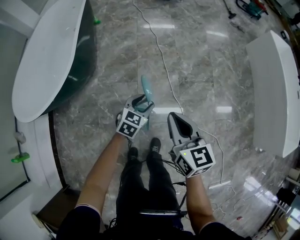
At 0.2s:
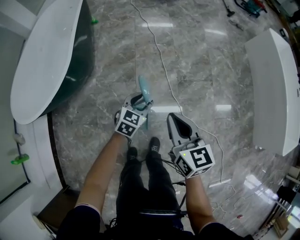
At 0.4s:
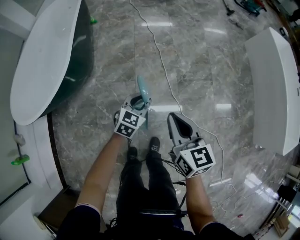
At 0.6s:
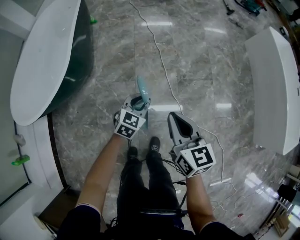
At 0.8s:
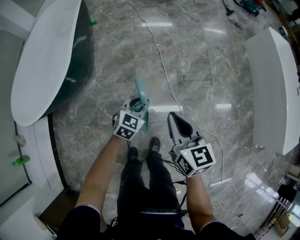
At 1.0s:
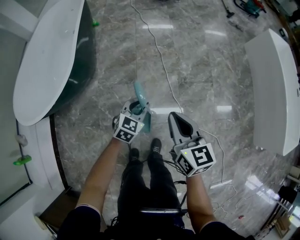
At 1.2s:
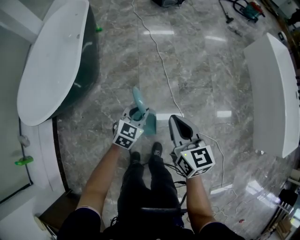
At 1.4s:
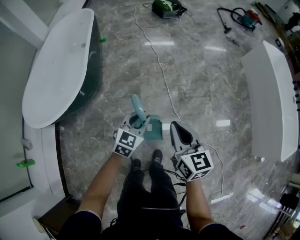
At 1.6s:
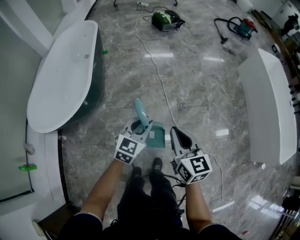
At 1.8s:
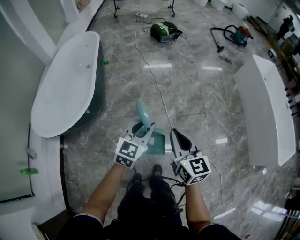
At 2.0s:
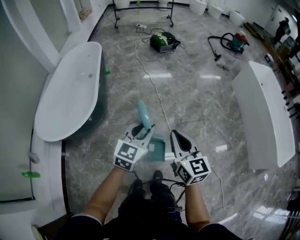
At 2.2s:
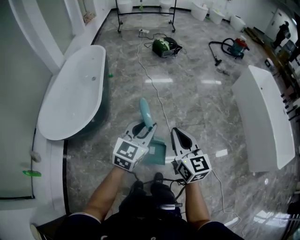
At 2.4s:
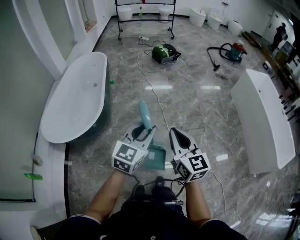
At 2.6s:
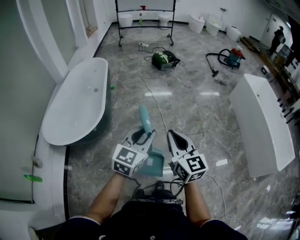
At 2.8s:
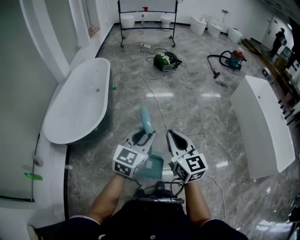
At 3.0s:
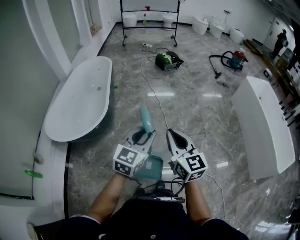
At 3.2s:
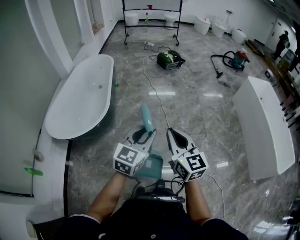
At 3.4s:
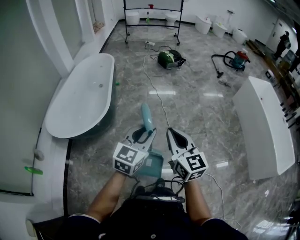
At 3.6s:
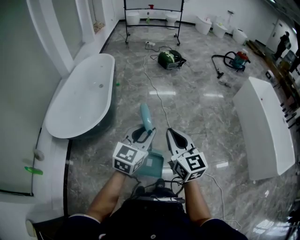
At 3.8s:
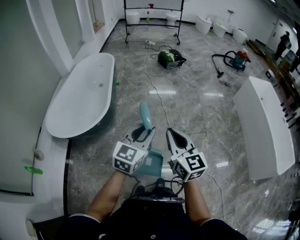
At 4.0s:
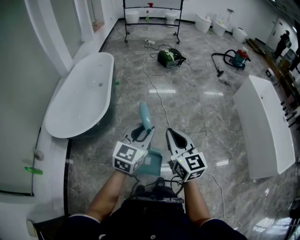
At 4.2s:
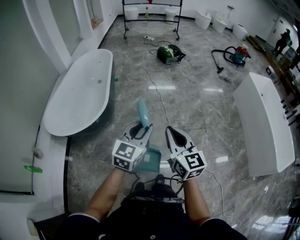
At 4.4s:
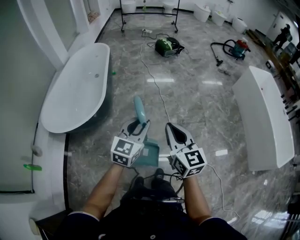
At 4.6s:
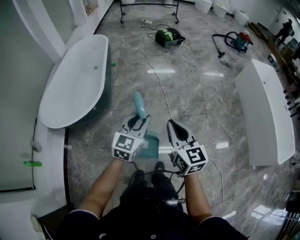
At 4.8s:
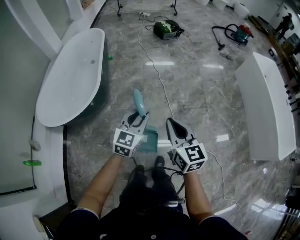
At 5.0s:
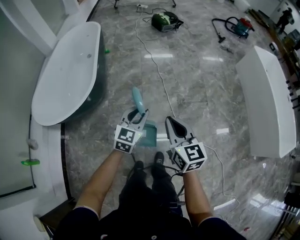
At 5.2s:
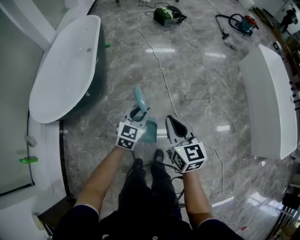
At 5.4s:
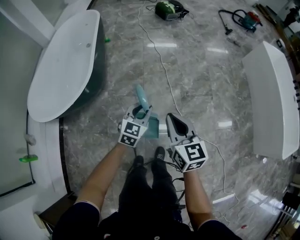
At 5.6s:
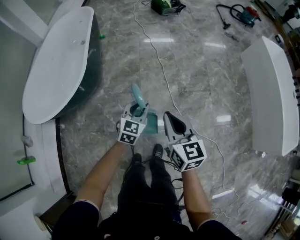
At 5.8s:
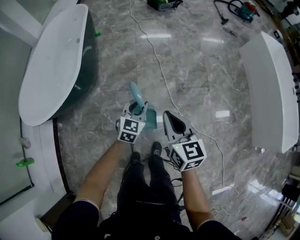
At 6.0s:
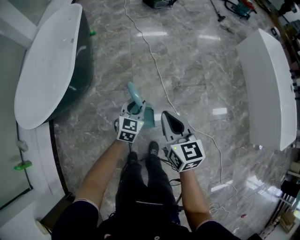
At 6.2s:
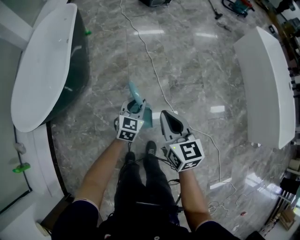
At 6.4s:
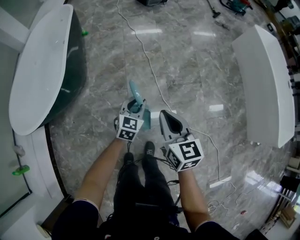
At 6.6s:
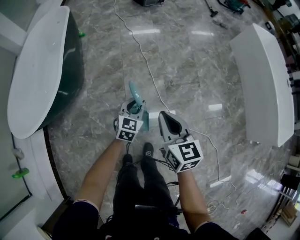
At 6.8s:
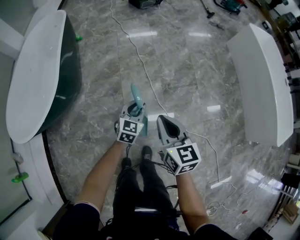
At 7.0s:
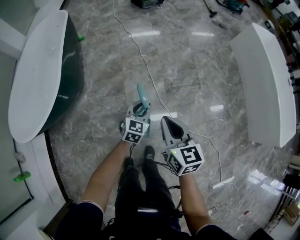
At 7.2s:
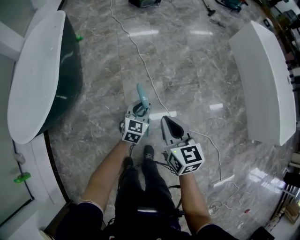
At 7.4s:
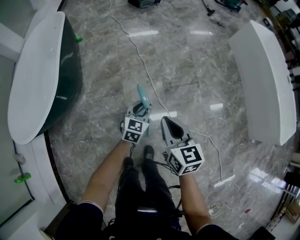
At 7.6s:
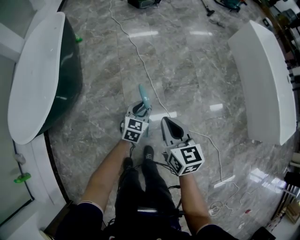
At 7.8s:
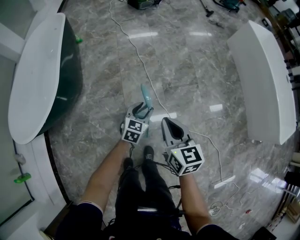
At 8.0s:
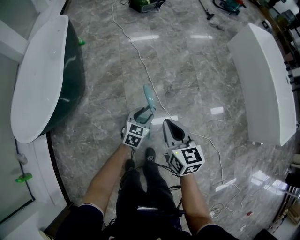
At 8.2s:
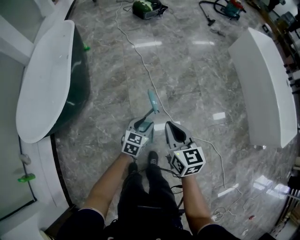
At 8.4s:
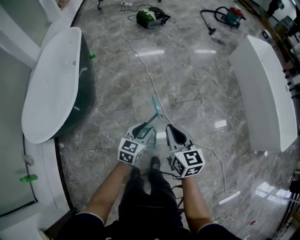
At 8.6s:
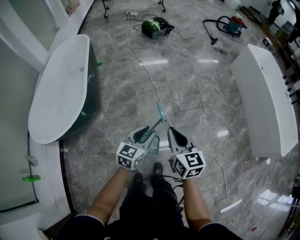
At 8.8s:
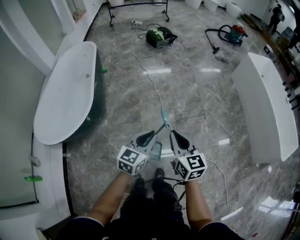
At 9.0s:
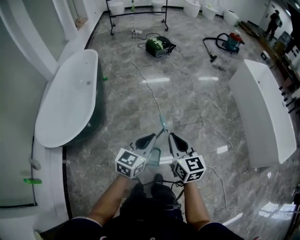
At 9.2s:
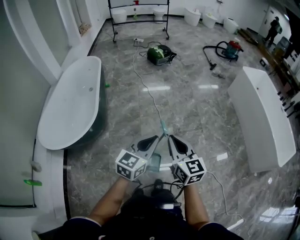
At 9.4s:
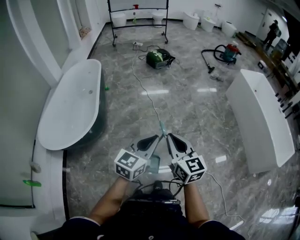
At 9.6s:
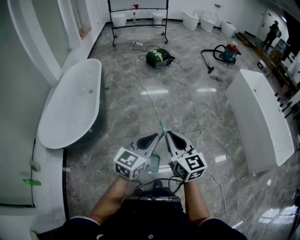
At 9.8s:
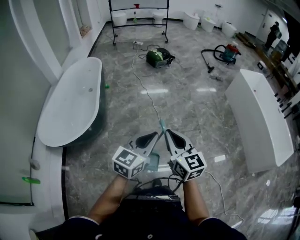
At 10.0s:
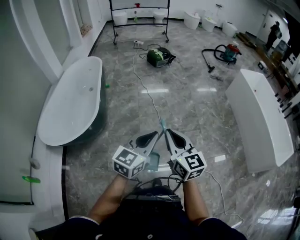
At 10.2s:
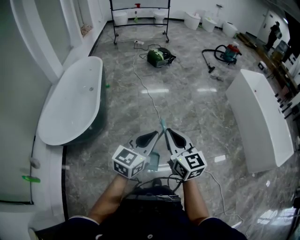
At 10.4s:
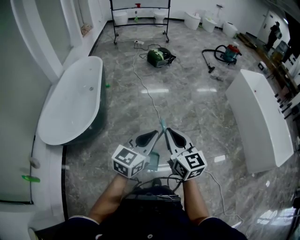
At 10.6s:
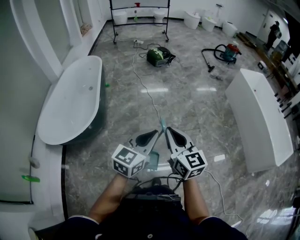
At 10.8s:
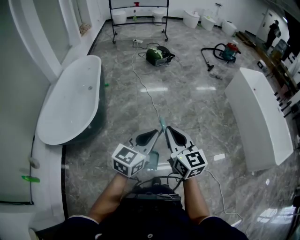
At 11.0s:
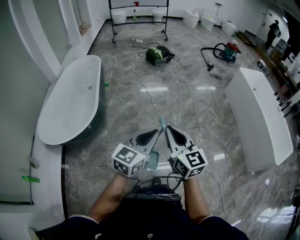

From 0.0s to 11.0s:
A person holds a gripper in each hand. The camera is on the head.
From 0.0s to 1.6s: The right gripper is displaced upward by about 10 cm; the left gripper is displaced upward by roughly 20 cm, and closes up.
From 1.6s to 3.2s: Both grippers travel together upward and backward, about 20 cm.
From 3.2s to 4.8s: The right gripper moves downward, about 10 cm; the left gripper is displaced downward and forward by roughly 15 cm.
From 4.8s to 6.2s: The right gripper heads downward and forward, covering approximately 15 cm, while the left gripper moves downward and forward, about 25 cm.
From 6.2s to 7.8s: The left gripper is displaced to the right and downward by some 10 cm; the right gripper heads to the right, covering some 5 cm.
From 7.8s to 9.4s: The left gripper is displaced upward and backward by about 40 cm, turns by about 30 degrees, and closes its fingers, while the right gripper moves upward and backward, approximately 25 cm.
From 9.4s to 11.0s: The grippers move only a little.

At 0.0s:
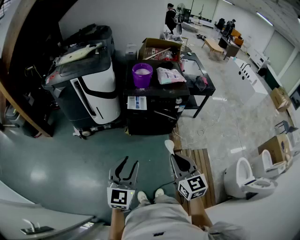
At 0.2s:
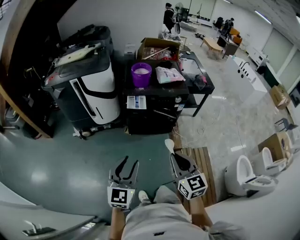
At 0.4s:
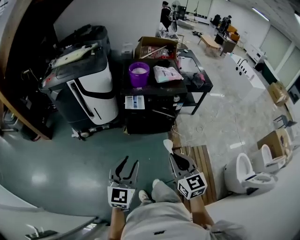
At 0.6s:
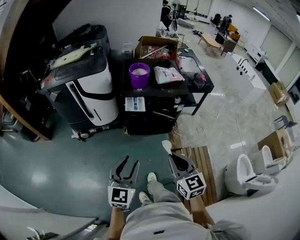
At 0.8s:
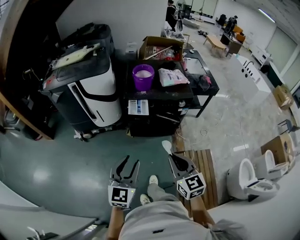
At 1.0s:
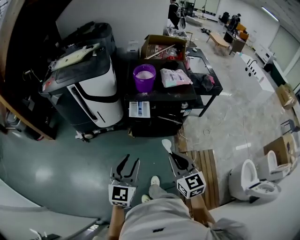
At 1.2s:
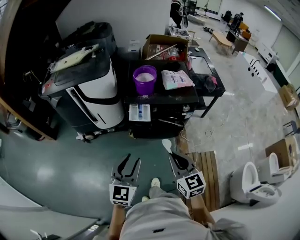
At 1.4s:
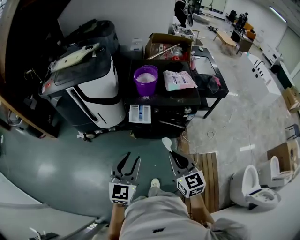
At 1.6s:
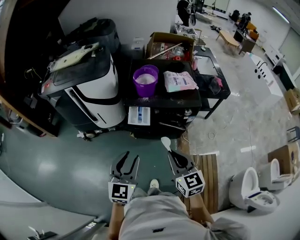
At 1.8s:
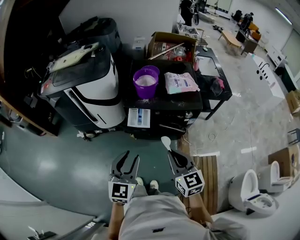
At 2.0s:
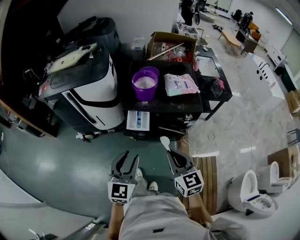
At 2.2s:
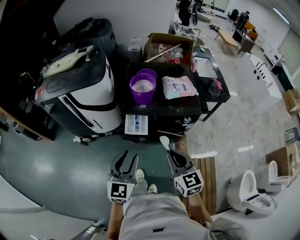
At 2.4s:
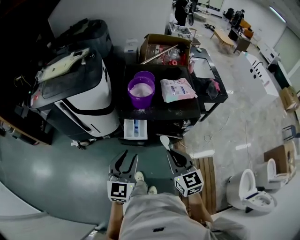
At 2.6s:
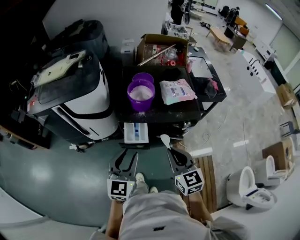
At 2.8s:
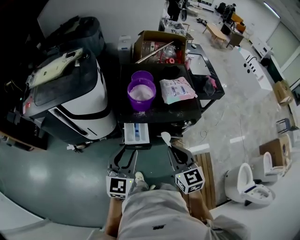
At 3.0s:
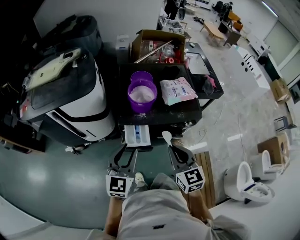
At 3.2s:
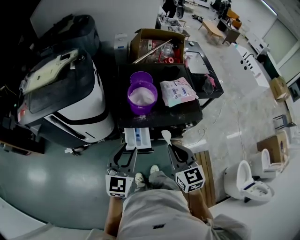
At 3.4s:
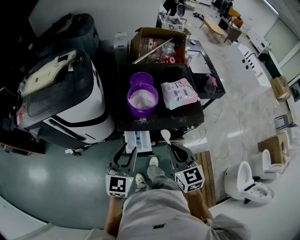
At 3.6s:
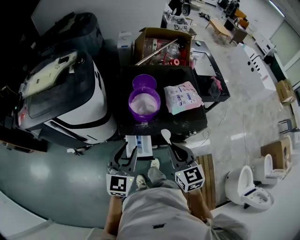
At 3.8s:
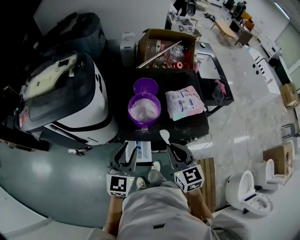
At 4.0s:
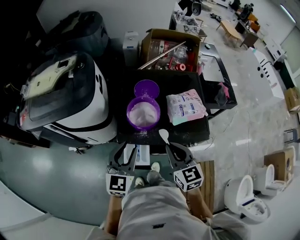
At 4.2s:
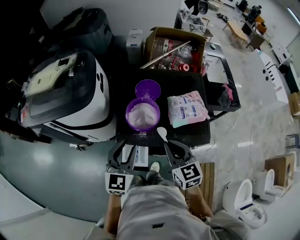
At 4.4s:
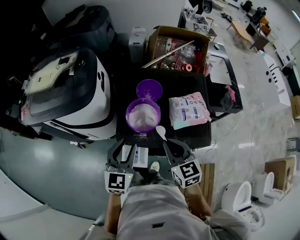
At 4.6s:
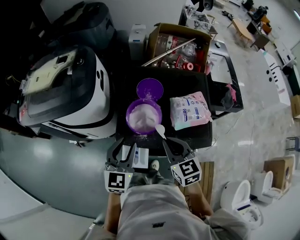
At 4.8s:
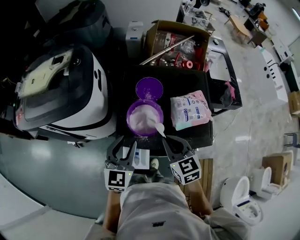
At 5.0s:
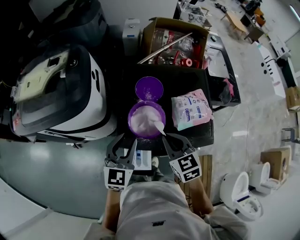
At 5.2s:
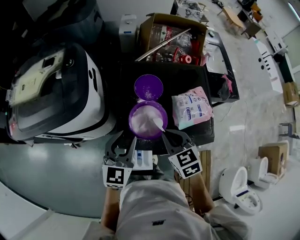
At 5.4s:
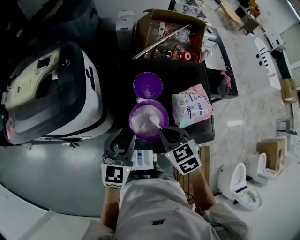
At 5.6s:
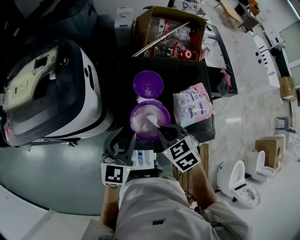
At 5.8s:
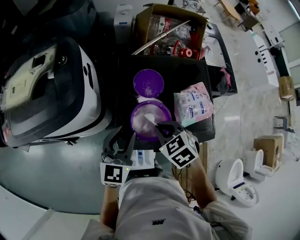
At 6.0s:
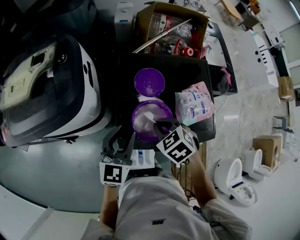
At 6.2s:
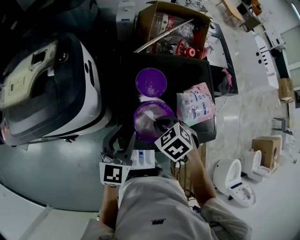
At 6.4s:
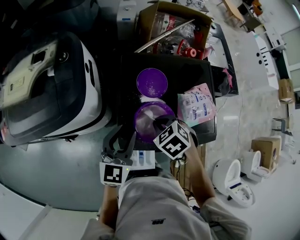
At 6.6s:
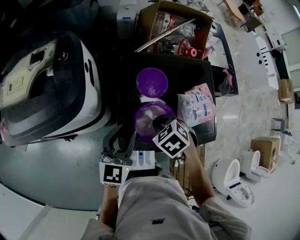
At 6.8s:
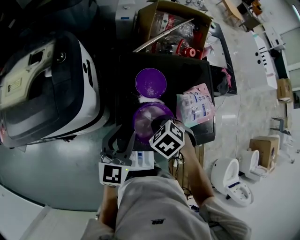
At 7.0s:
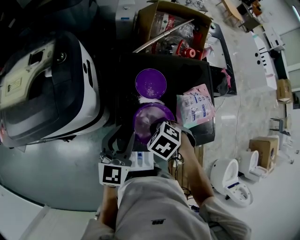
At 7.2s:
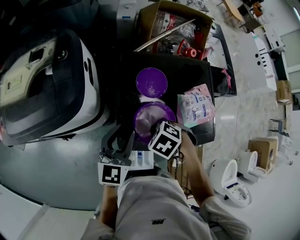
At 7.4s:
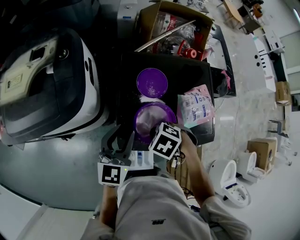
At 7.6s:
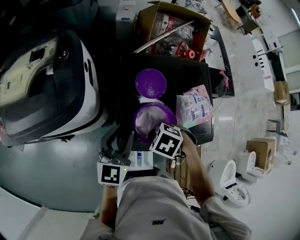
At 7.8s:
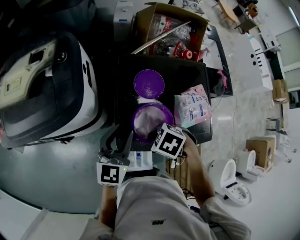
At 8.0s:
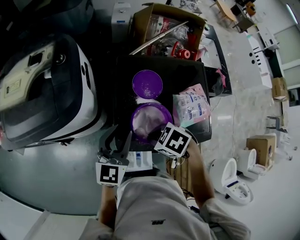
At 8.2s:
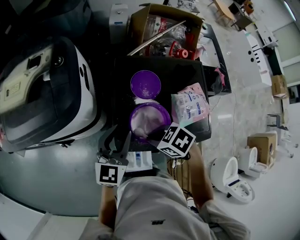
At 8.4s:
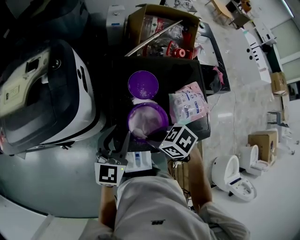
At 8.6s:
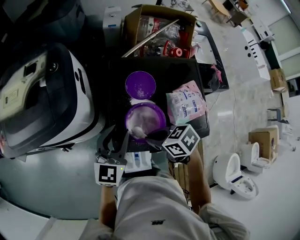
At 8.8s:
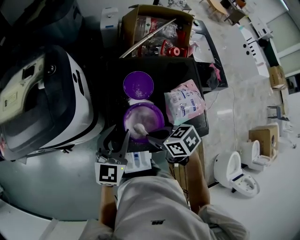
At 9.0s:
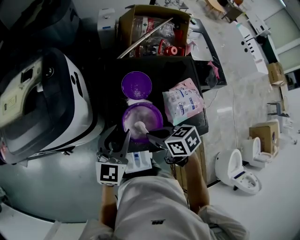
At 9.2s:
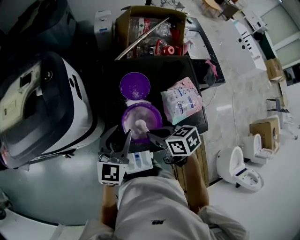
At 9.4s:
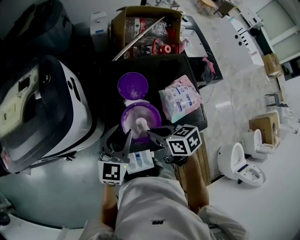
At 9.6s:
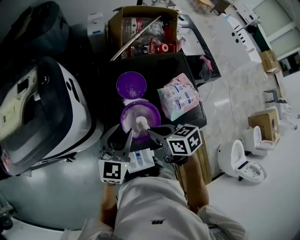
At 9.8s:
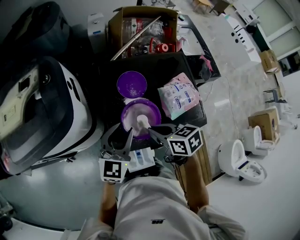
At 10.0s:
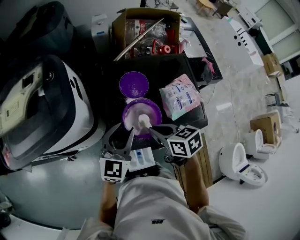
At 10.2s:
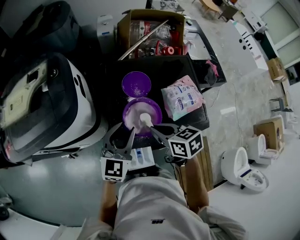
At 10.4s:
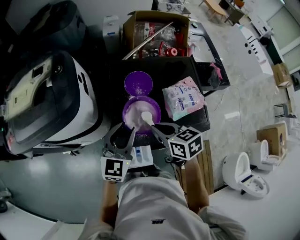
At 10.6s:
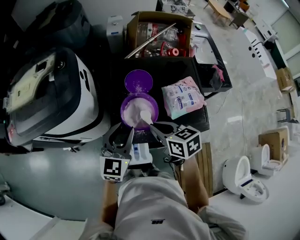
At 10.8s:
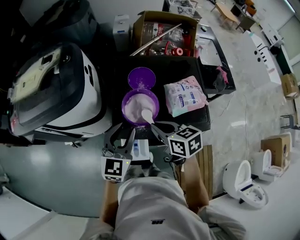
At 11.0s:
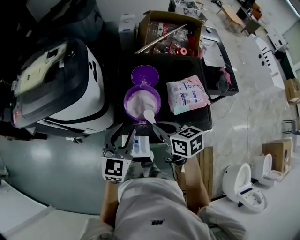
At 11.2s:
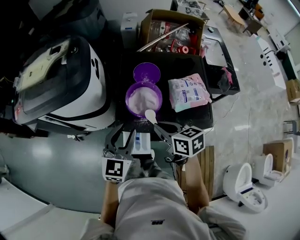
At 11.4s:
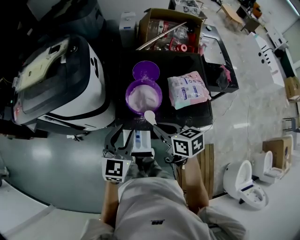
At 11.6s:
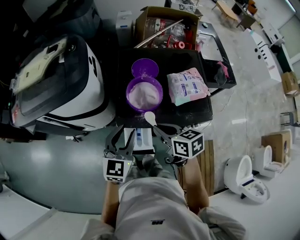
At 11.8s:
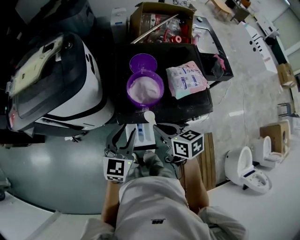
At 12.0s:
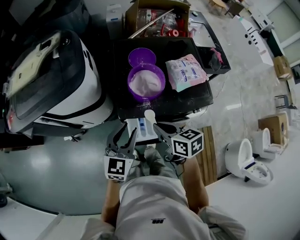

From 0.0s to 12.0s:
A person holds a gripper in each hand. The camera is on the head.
From 0.0s to 1.6s: The grippers both shift forward by roughly 20 cm.
From 1.6s to 3.0s: The two grippers go some 20 cm forward.
From 3.0s to 4.4s: Both grippers travel together forward, approximately 20 cm.
From 4.4s to 6.0s: The right gripper travels forward, to the left and downward by about 20 cm, and angles its fingers downward, by approximately 40 degrees; the left gripper travels forward by some 15 cm.
From 6.0s to 7.6s: The right gripper moves some 5 cm, and rotates about 30 degrees.
From 7.6s to 9.0s: The right gripper moves some 5 cm, and angles its fingers upward, by roughly 30 degrees.
From 9.0s to 10.4s: The left gripper ends up some 5 cm from where it was.
From 10.4s to 12.0s: Both grippers travel together backward and to the left, some 15 cm.

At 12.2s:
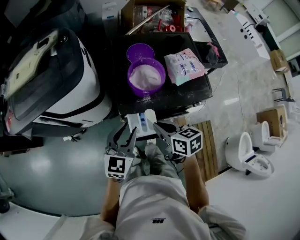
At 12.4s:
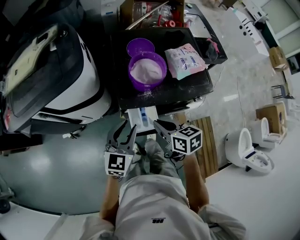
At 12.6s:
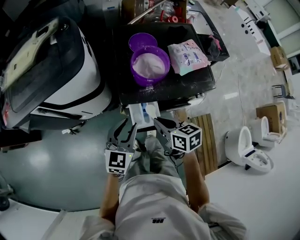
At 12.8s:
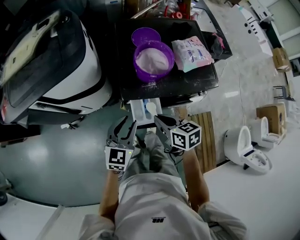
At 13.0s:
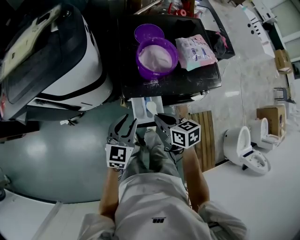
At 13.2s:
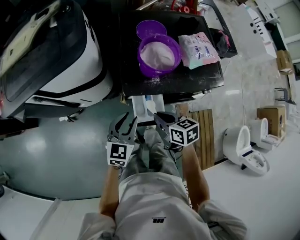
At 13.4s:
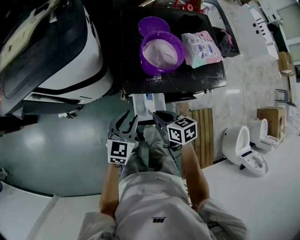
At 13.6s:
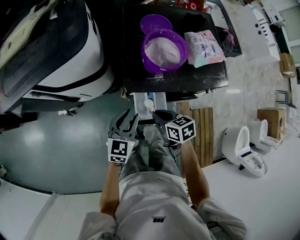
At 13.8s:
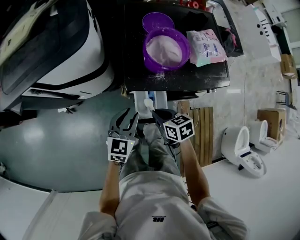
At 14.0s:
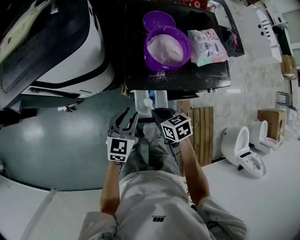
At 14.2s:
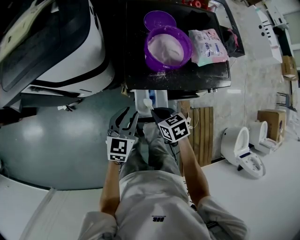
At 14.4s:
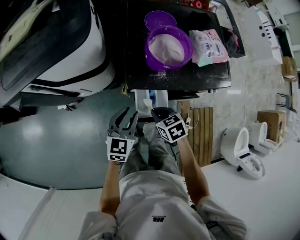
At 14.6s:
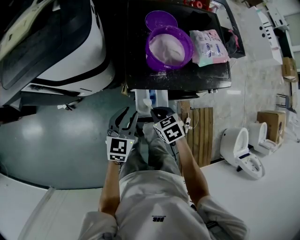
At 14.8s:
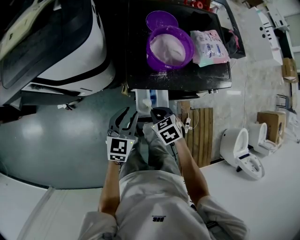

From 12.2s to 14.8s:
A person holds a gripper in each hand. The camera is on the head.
From 12.2s to 13.4s: Both grippers travel together downward, some 10 cm.
From 13.4s to 14.8s: The right gripper goes approximately 5 cm downward, and swivels roughly 30 degrees.
